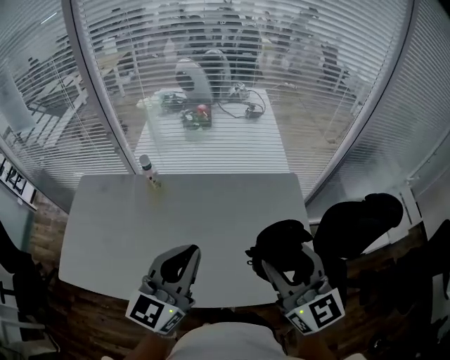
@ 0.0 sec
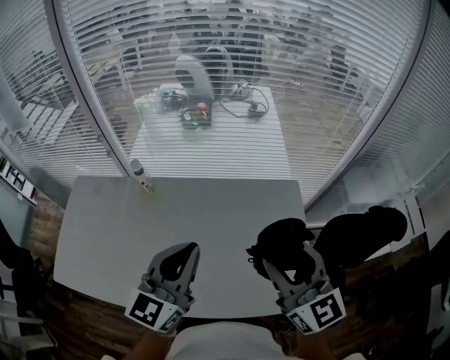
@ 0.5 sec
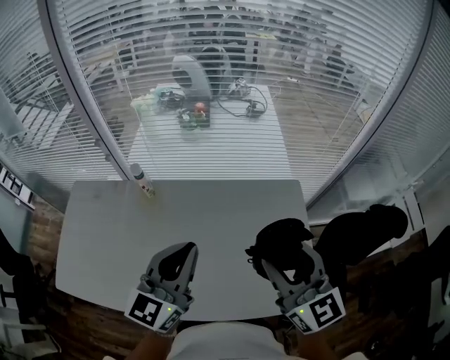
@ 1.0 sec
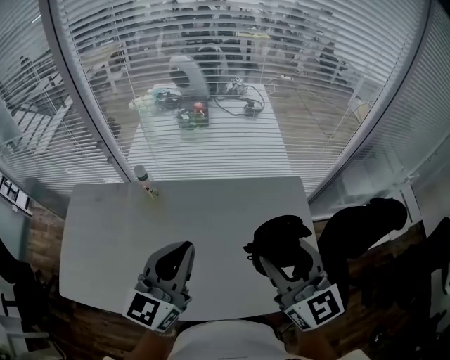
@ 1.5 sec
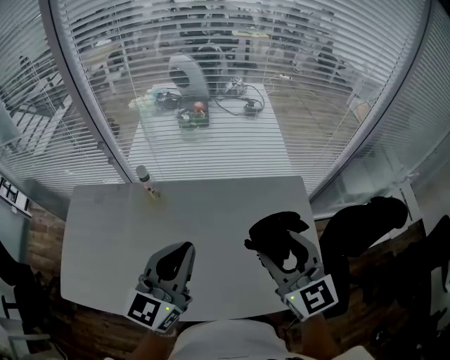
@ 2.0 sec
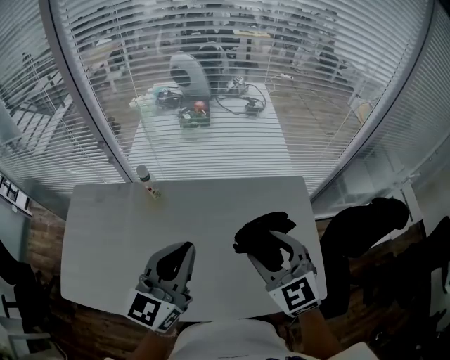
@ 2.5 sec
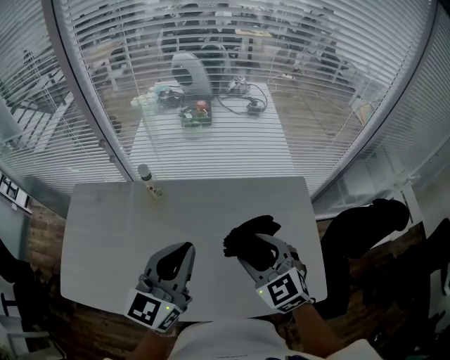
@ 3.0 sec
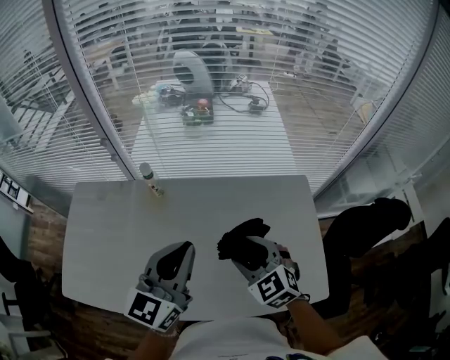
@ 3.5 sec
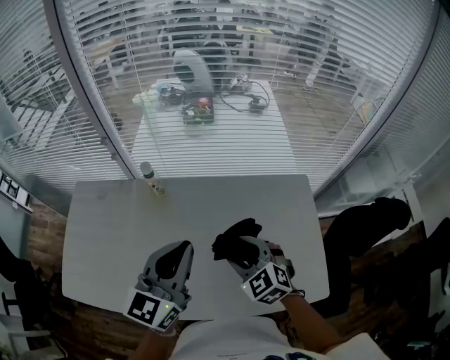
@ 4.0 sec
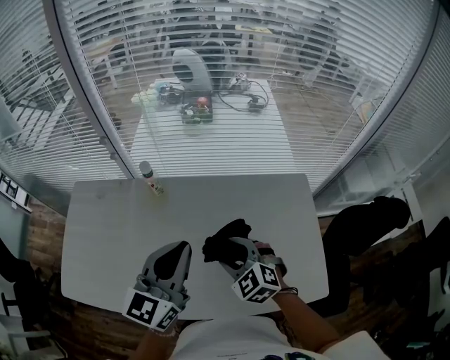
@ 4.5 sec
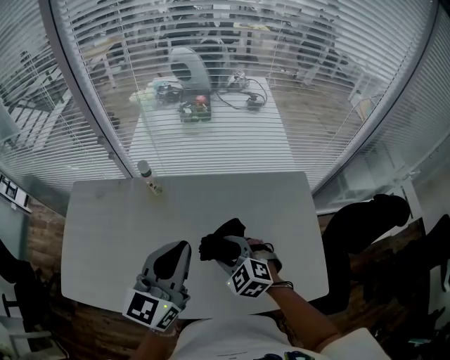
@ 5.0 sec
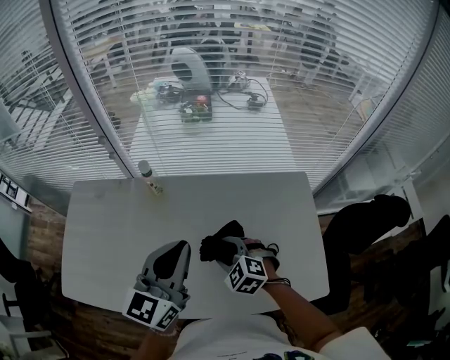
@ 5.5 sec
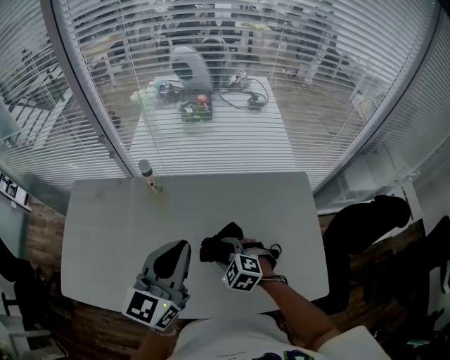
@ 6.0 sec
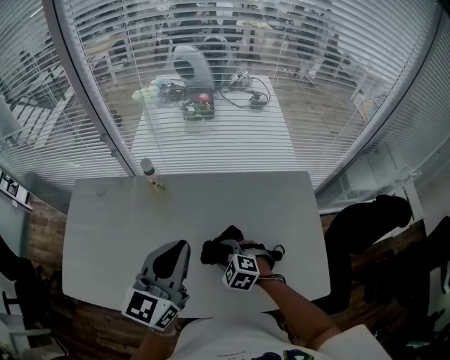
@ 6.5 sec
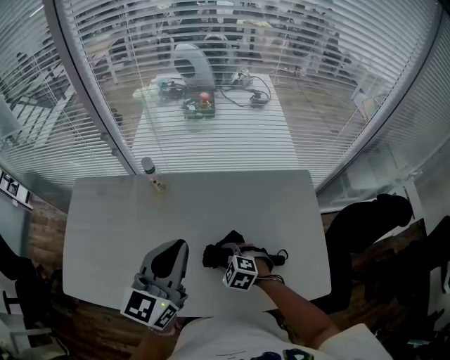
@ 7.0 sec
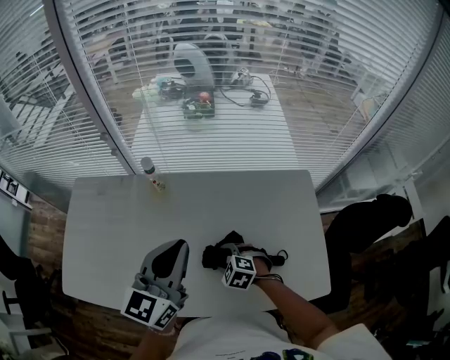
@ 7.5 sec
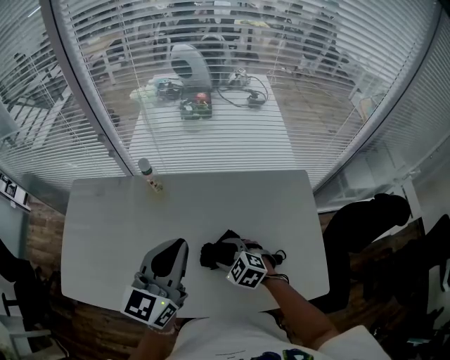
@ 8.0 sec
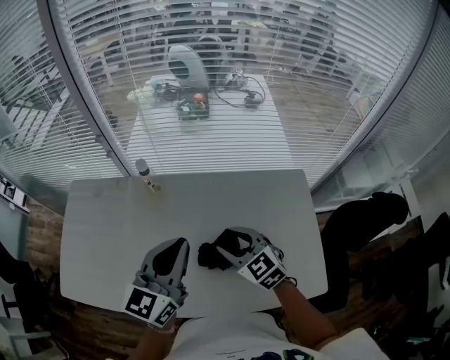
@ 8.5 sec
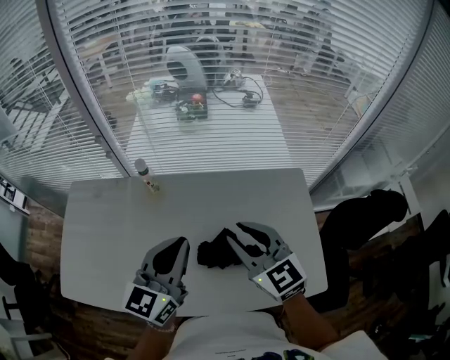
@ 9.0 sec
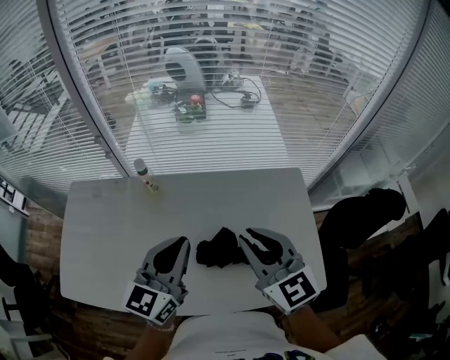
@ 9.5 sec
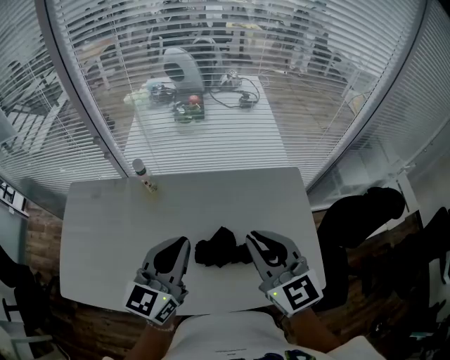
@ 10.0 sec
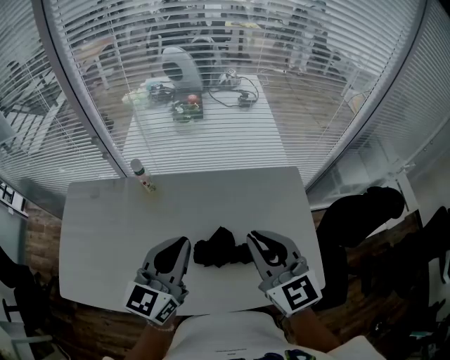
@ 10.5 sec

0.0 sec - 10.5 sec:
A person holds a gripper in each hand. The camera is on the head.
0.0 sec - 2.0 sec: The grippers both shift forward by some 10 cm.
2.0 sec - 4.0 sec: The right gripper heads downward and to the left, covering some 20 cm, and swivels approximately 30 degrees.
4.0 sec - 6.5 sec: The right gripper heads downward, covering some 15 cm, and changes its angle by approximately 20 degrees.
6.5 sec - 8.5 sec: The right gripper heads upward, covering about 15 cm, and swivels about 30 degrees.
8.5 sec - 10.5 sec: The right gripper travels upward and to the right by approximately 15 cm, rotates roughly 30 degrees, and closes.

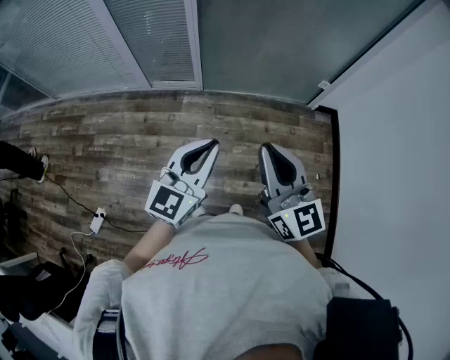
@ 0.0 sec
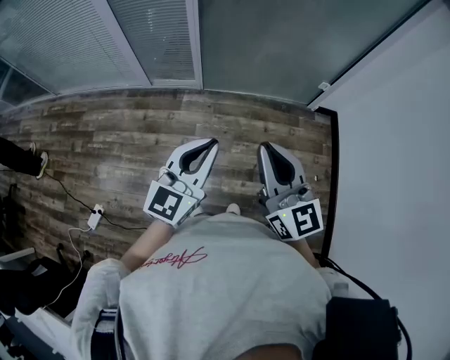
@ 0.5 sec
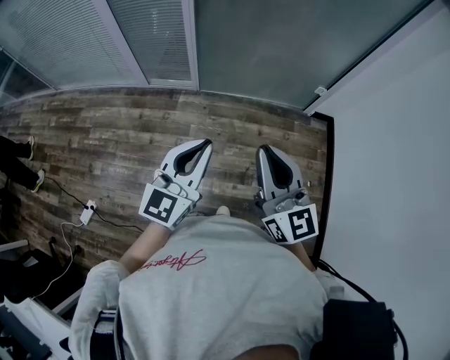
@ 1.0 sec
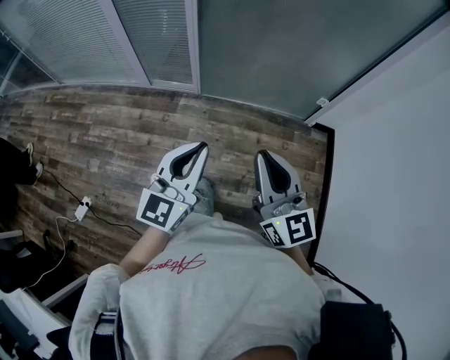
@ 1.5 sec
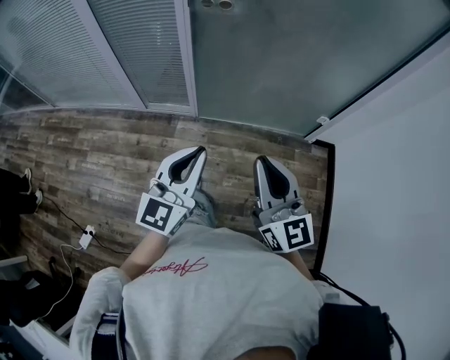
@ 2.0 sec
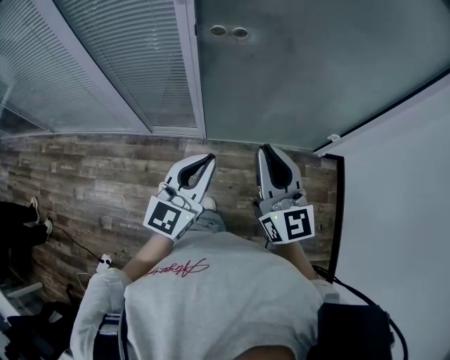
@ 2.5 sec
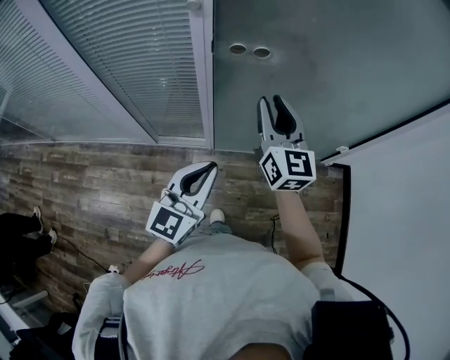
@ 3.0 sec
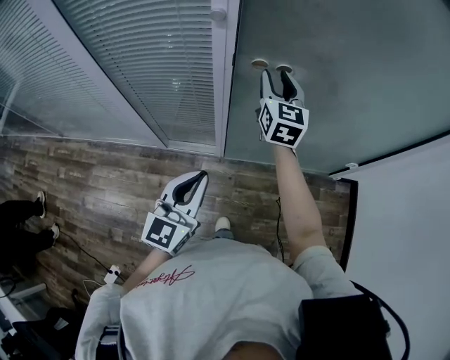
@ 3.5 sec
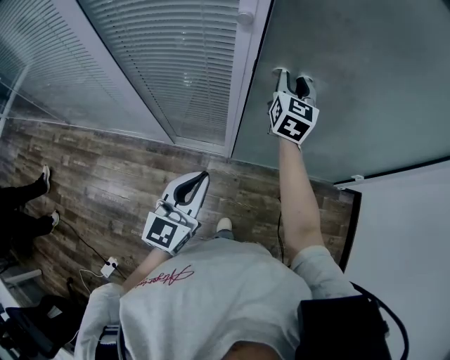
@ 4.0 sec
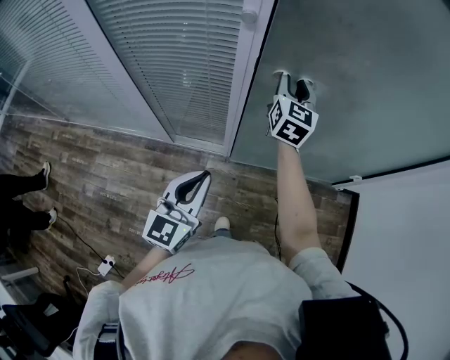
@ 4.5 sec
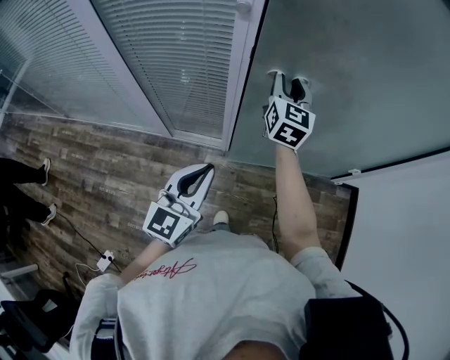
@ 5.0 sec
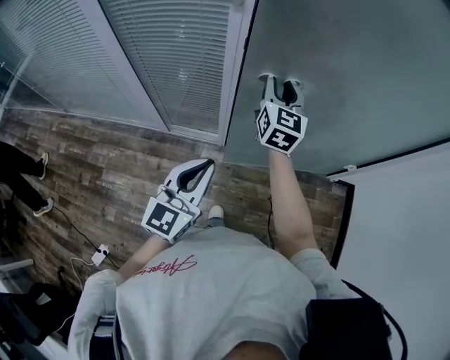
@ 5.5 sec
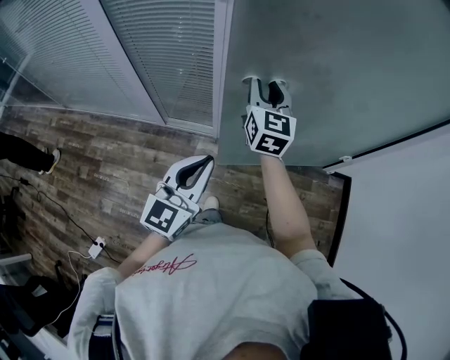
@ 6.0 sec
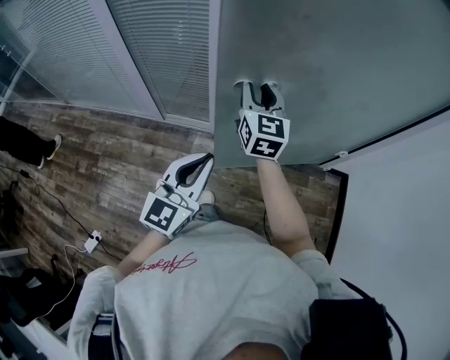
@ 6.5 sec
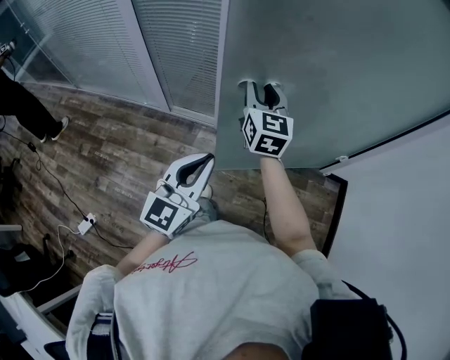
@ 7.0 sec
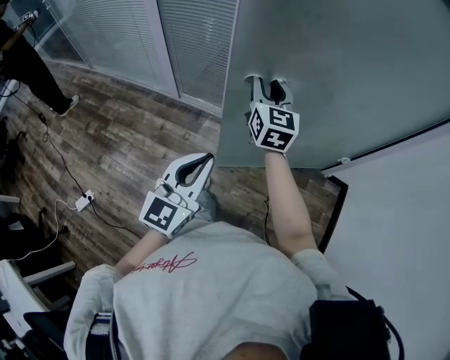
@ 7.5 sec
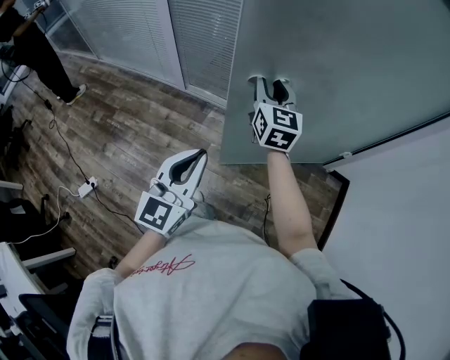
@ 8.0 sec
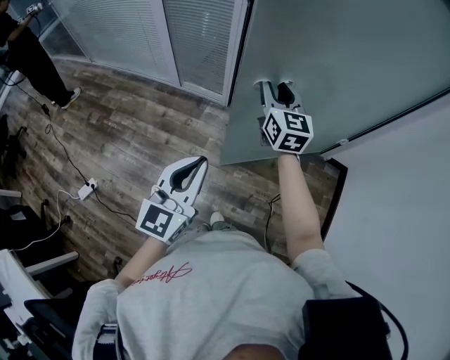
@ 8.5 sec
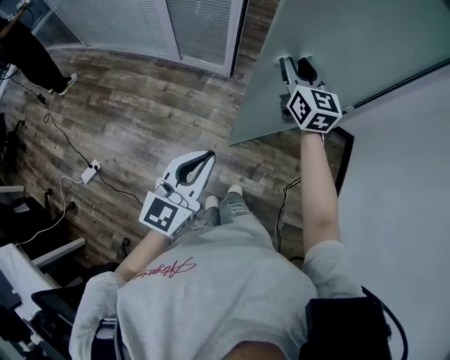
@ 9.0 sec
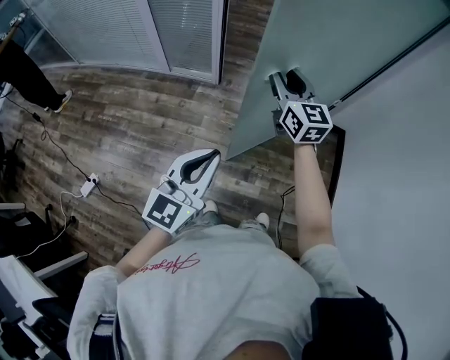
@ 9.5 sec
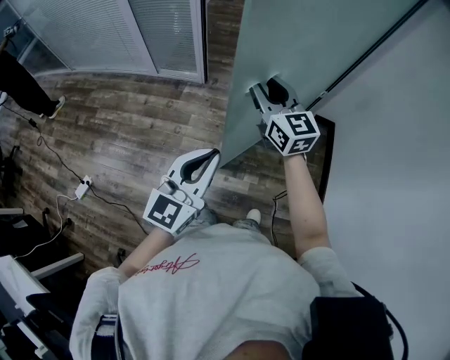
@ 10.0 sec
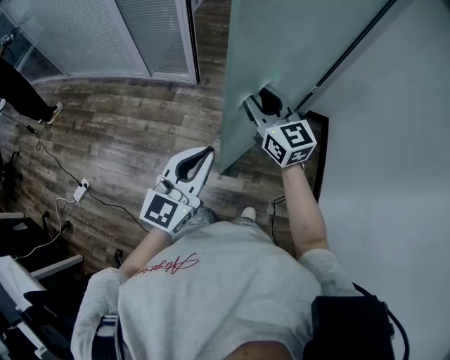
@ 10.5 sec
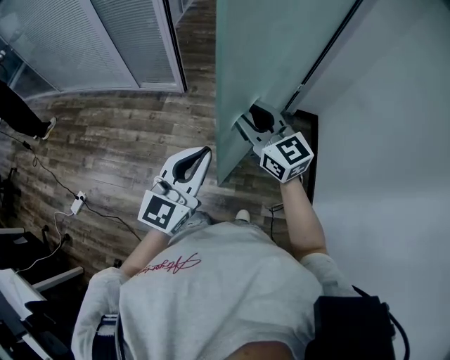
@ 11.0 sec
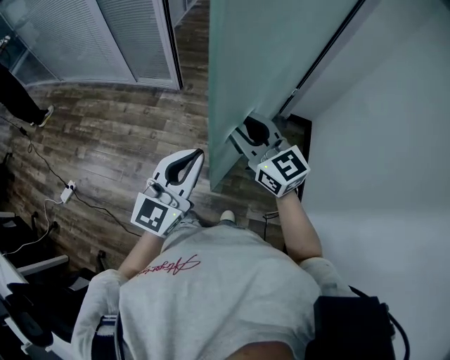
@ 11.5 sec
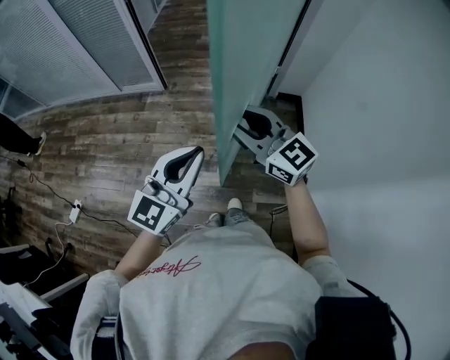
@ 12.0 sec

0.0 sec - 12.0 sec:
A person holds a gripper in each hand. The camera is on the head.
0.0 sec - 2.0 sec: Both grippers move forward, roughly 15 cm.
2.0 sec - 4.0 sec: The left gripper goes about 30 cm to the left and forward; the right gripper travels forward by some 50 cm, changes its angle by about 30 degrees, and opens up.
4.0 sec - 6.0 sec: The right gripper travels backward by some 15 cm. Meanwhile the left gripper travels to the right and backward by some 15 cm.
6.0 sec - 8.0 sec: Both grippers travel together backward, about 20 cm.
8.0 sec - 10.0 sec: The grippers both shift backward and to the right by about 25 cm.
10.0 sec - 12.0 sec: The right gripper heads backward and to the right, covering roughly 20 cm; the left gripper moves to the right, about 15 cm.

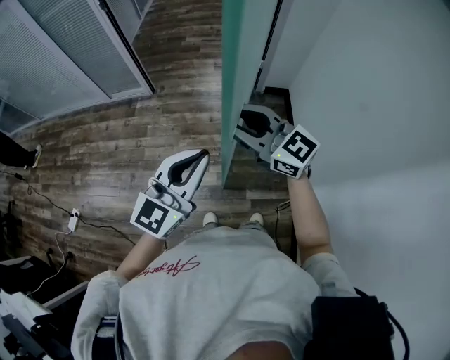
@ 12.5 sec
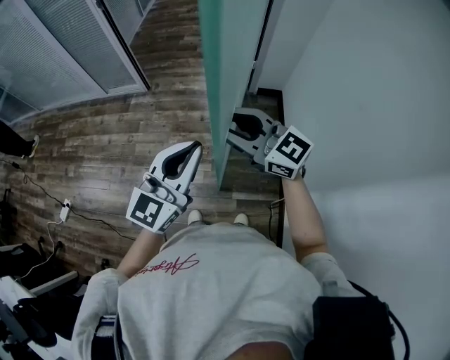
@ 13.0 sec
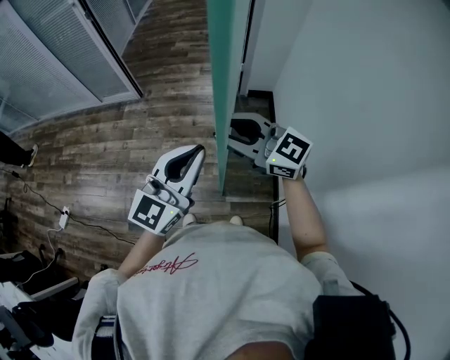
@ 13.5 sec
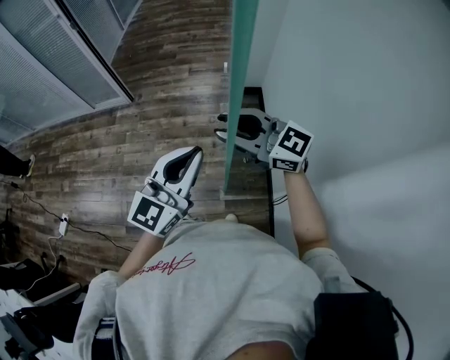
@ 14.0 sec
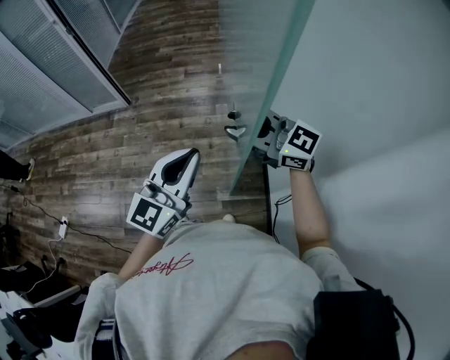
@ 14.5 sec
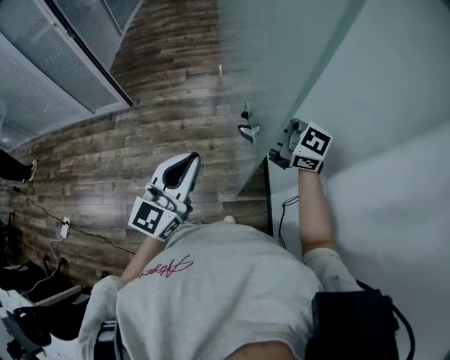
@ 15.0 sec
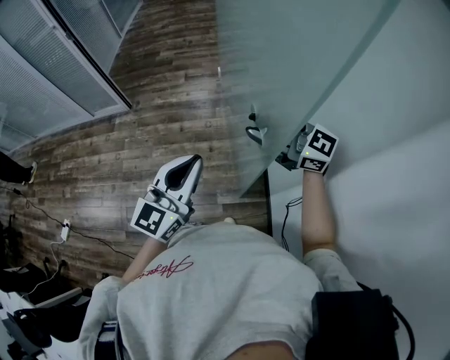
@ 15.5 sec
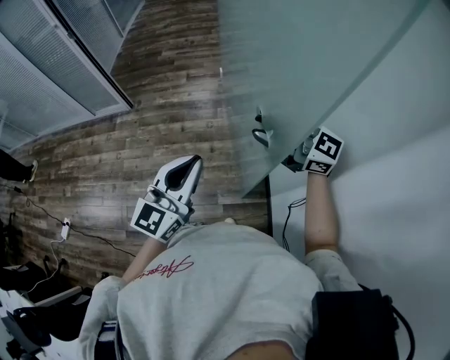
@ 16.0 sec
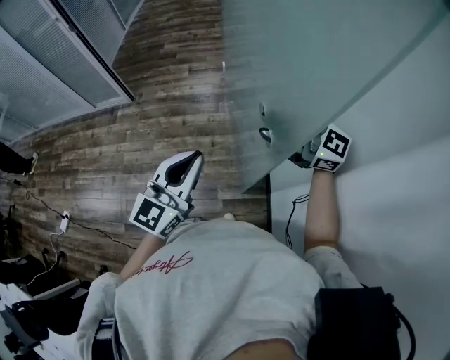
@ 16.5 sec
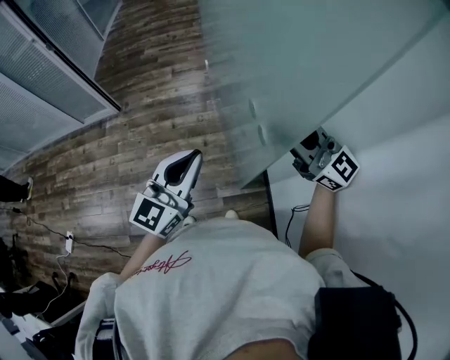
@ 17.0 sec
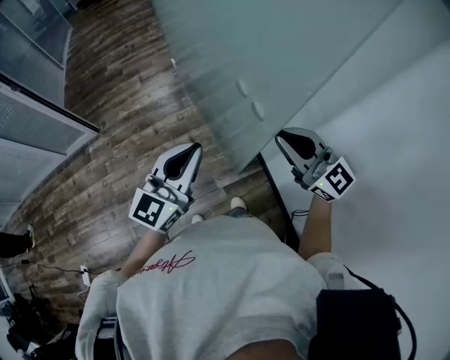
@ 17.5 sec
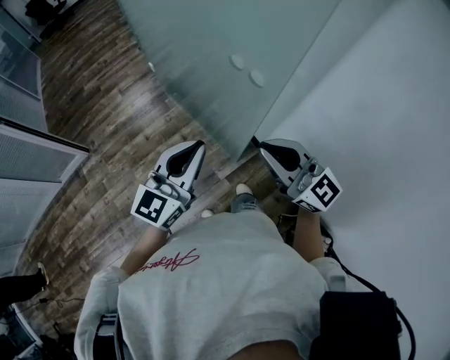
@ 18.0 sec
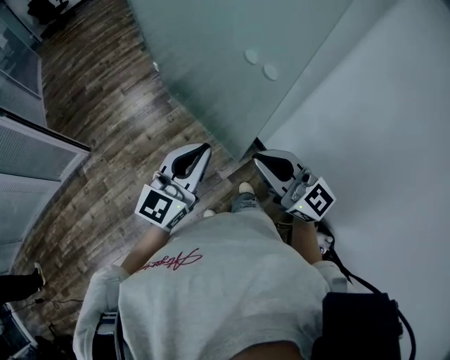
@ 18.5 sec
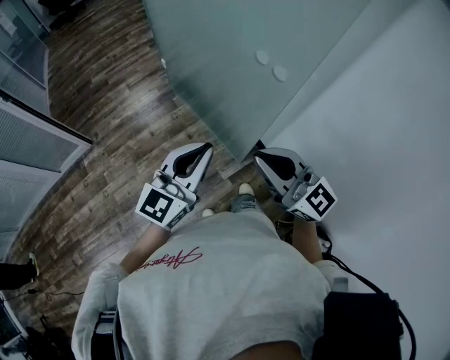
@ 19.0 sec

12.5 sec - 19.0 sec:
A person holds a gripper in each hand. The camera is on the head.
12.5 sec - 14.5 sec: The left gripper moves to the right, about 20 cm, while the right gripper travels to the right and backward by roughly 20 cm.
14.5 sec - 17.0 sec: The right gripper goes roughly 10 cm to the right, and swivels about 20 degrees.
17.0 sec - 19.0 sec: The right gripper changes place by roughly 25 cm, and turns by approximately 30 degrees. The left gripper changes place by about 10 cm, and turns by some 30 degrees.
